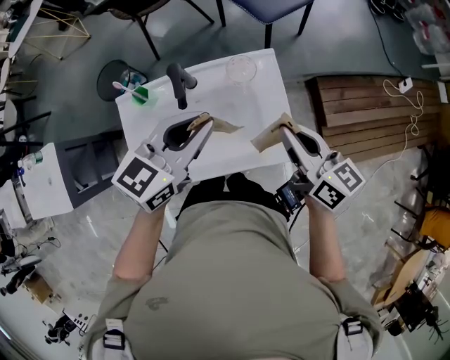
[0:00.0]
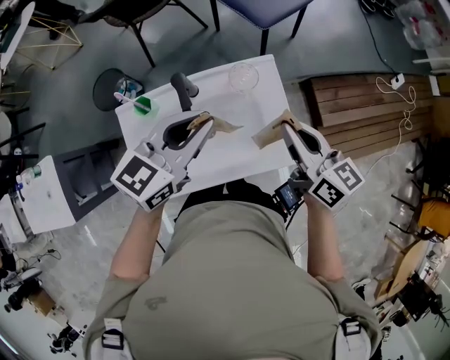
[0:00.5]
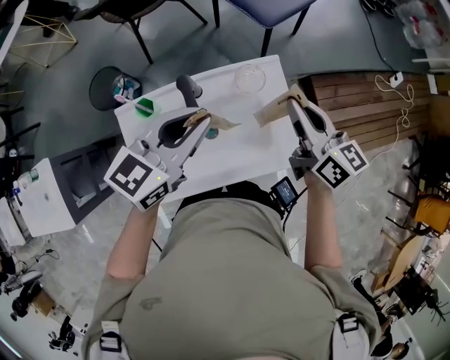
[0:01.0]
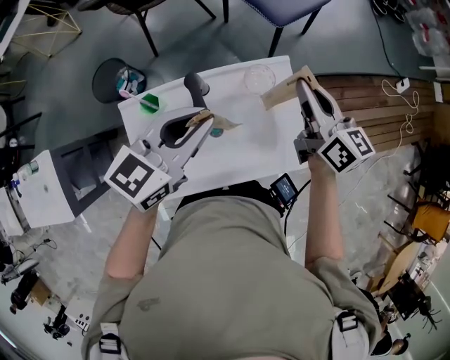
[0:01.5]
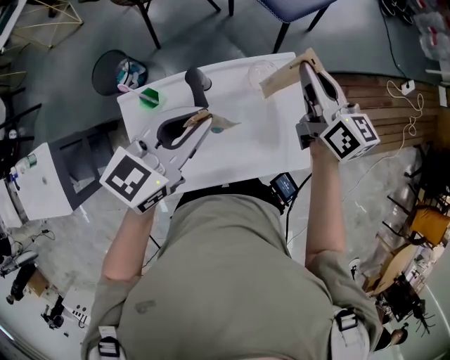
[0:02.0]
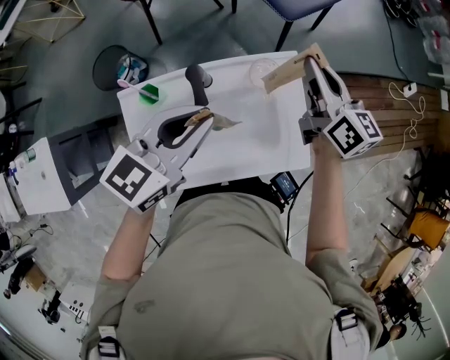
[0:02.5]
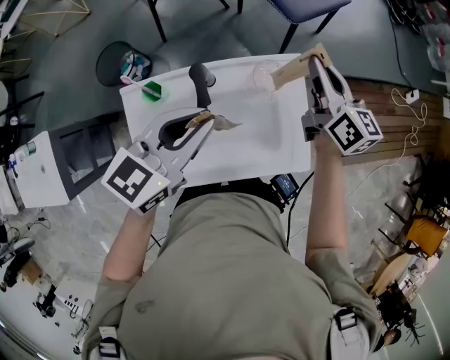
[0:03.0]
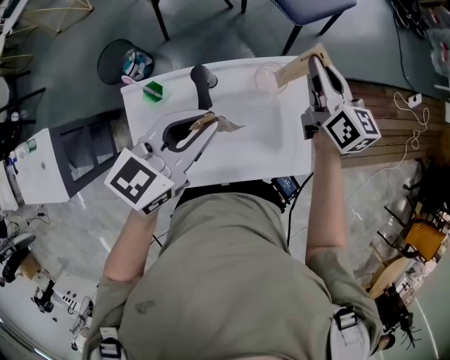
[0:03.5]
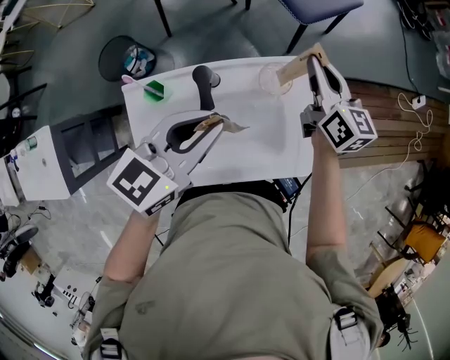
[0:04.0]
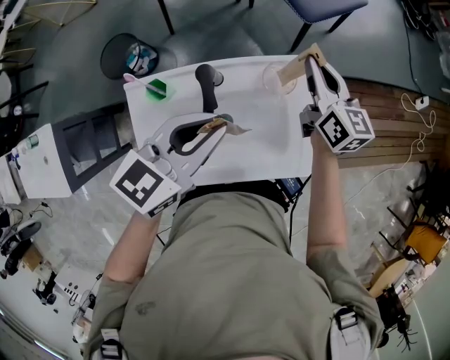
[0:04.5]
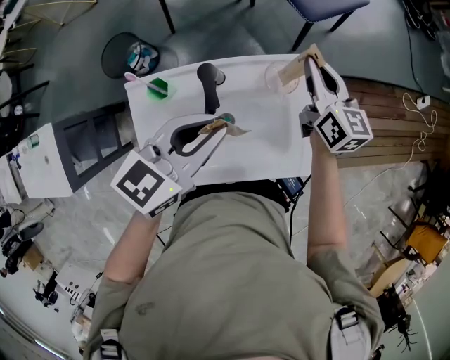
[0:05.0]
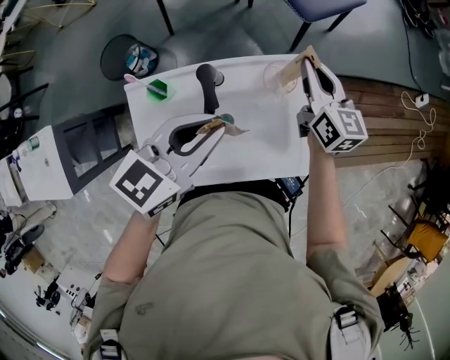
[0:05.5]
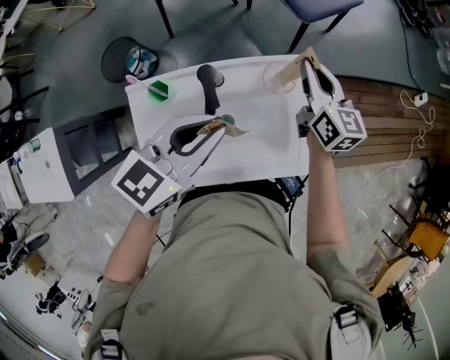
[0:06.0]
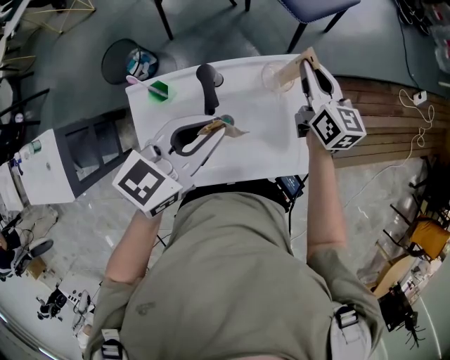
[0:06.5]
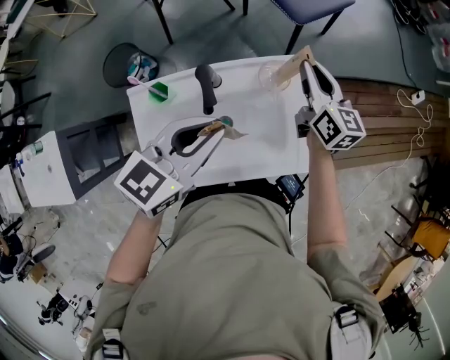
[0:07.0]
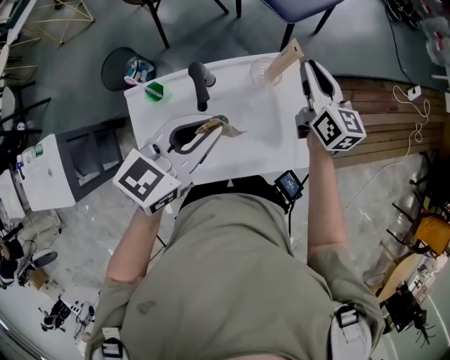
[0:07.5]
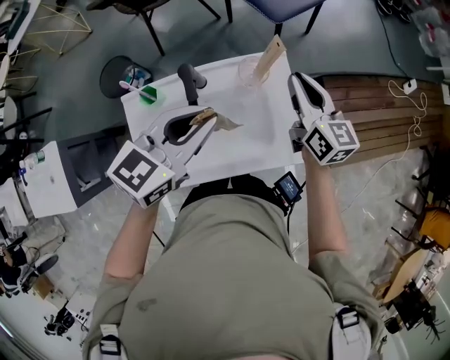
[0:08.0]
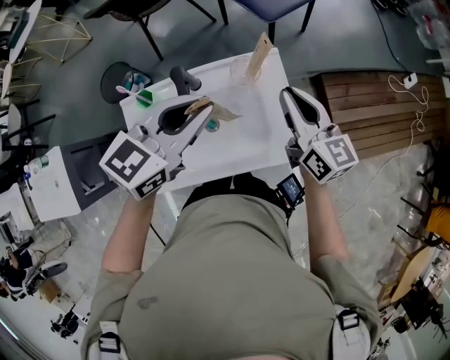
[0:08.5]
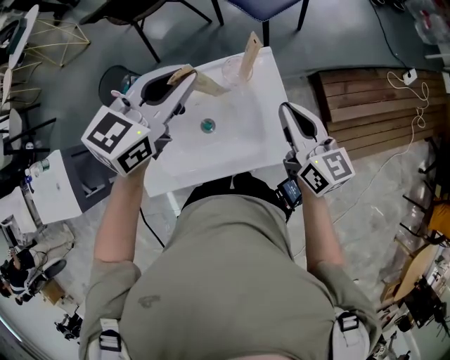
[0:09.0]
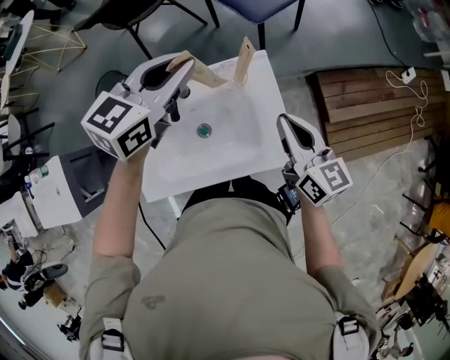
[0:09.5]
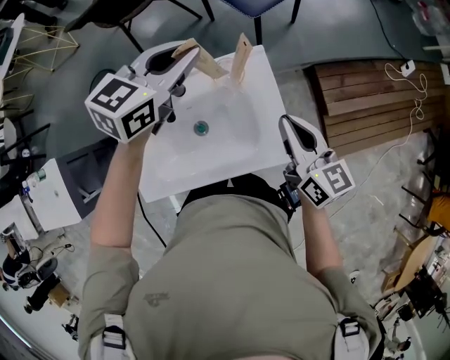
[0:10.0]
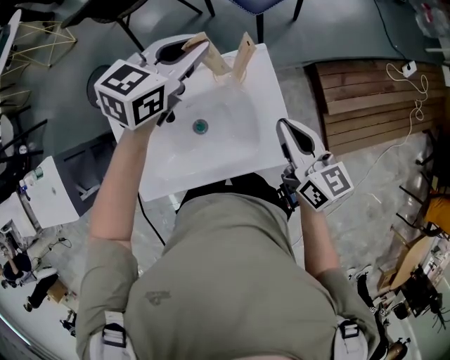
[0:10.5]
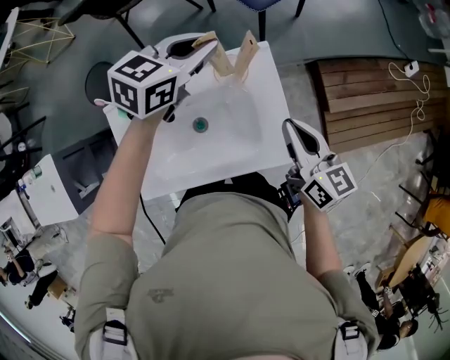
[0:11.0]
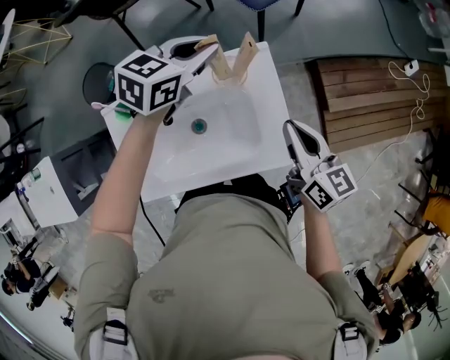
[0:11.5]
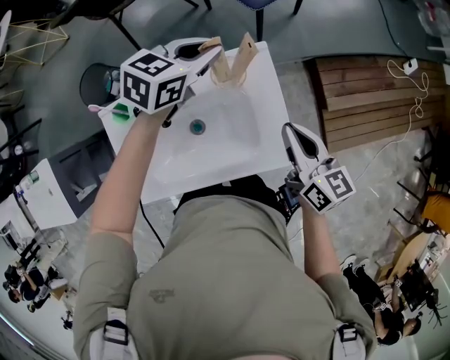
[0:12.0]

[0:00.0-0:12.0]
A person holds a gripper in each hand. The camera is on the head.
0:00.0 to 0:02.0: The right gripper travels forward by roughly 15 cm. Meanwhile the left gripper shifts by some 5 cm.
0:02.0 to 0:04.0: The right gripper changes place by approximately 5 cm.
0:04.0 to 0:06.0: The grippers stay close to where they were, moving slightly.
0:06.0 to 0:08.0: The left gripper moves about 5 cm; the right gripper travels backward and to the right by roughly 10 cm.
0:08.0 to 0:10.0: The right gripper moves backward and to the right, approximately 10 cm; the left gripper goes approximately 15 cm forward.
0:10.0 to 0:12.0: The left gripper moves downward, approximately 10 cm.

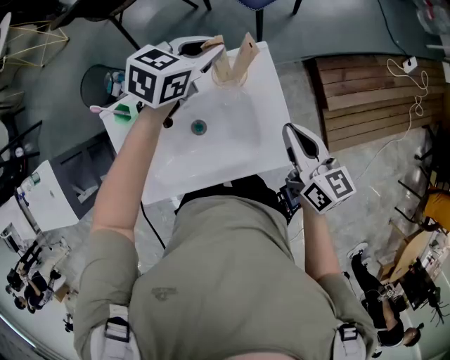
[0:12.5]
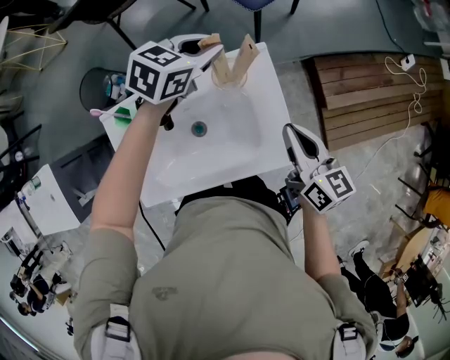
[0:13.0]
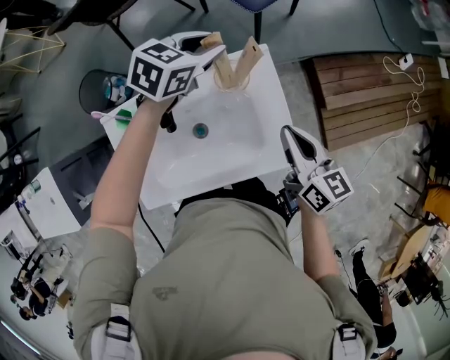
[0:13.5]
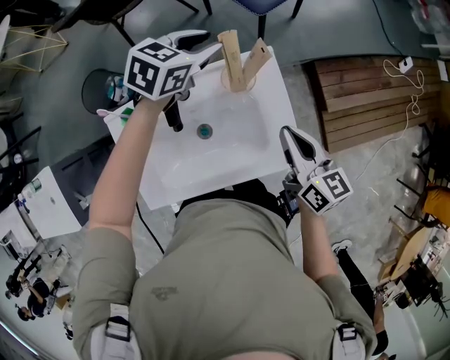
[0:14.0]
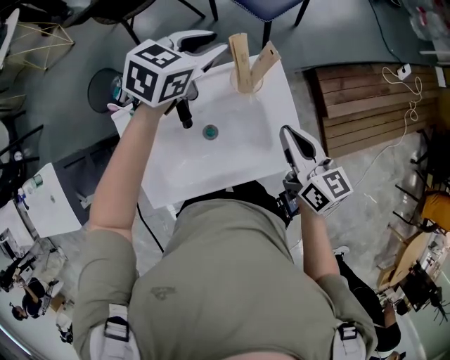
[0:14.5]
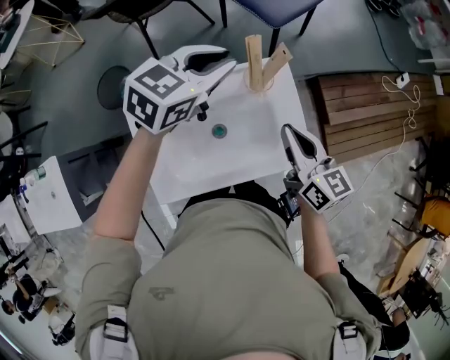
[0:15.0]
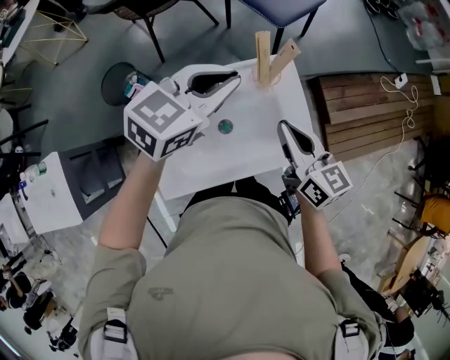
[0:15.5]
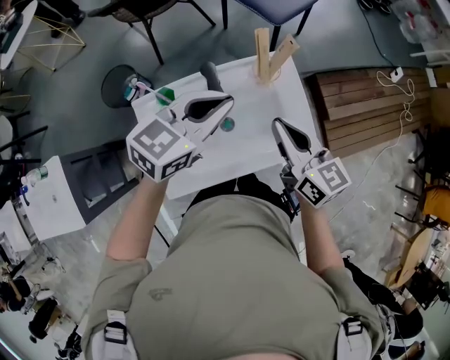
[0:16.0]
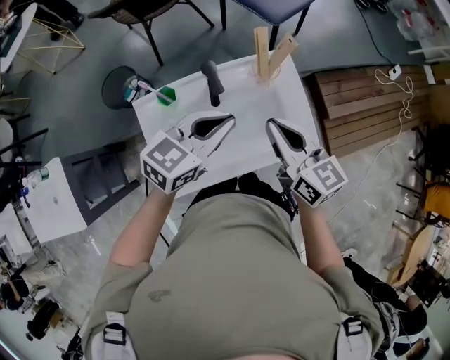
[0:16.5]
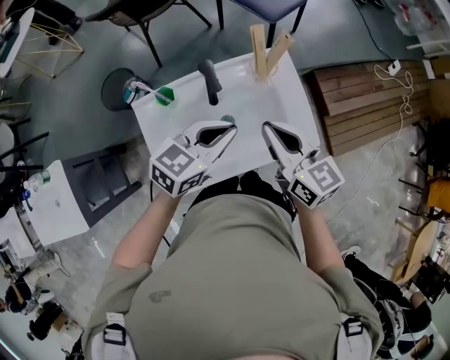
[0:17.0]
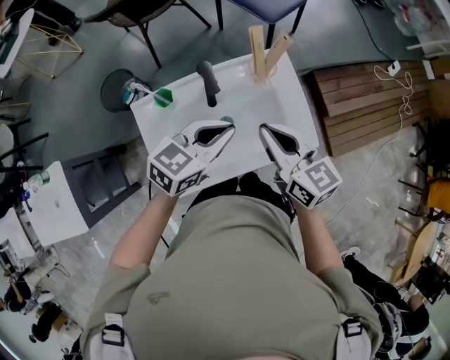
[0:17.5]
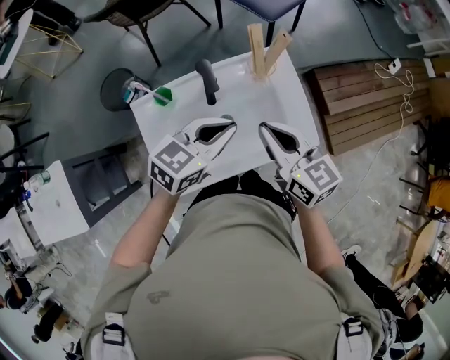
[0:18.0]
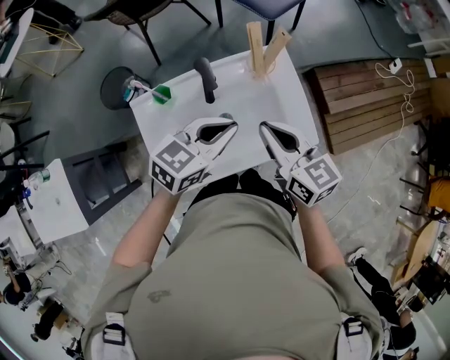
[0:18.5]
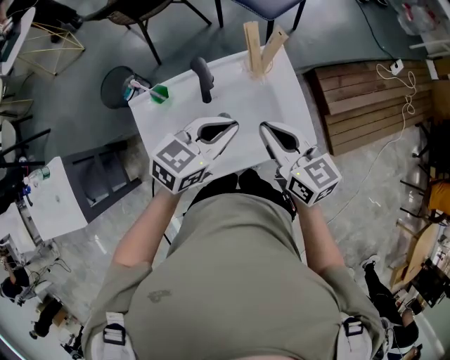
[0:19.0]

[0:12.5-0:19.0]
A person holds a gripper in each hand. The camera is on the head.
0:12.5 to 0:14.5: The right gripper moves to the left, roughly 5 cm, while the left gripper shifts by about 5 cm.
0:14.5 to 0:17.0: The left gripper goes roughly 25 cm backward, and closes its fingers, while the right gripper moves to the left, backward and upward, about 15 cm.
0:17.0 to 0:19.0: The grippers make only small movements.

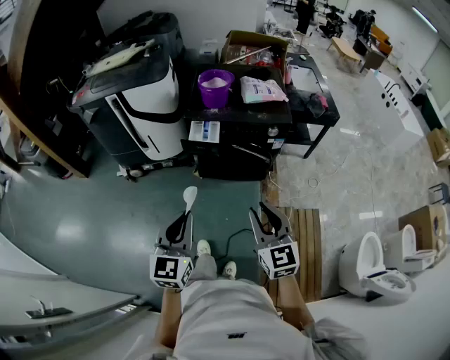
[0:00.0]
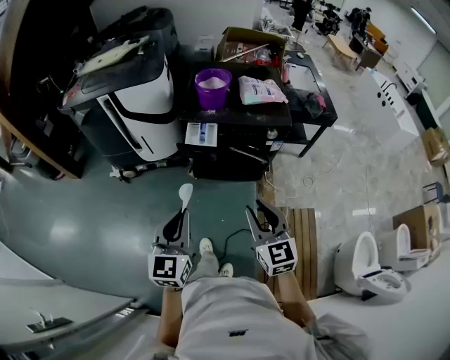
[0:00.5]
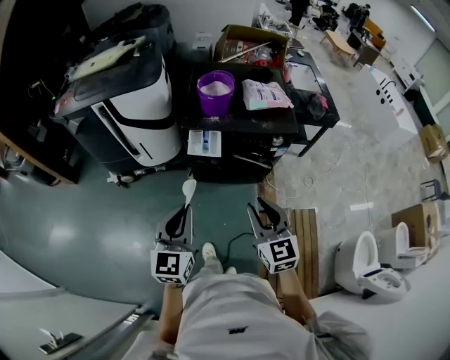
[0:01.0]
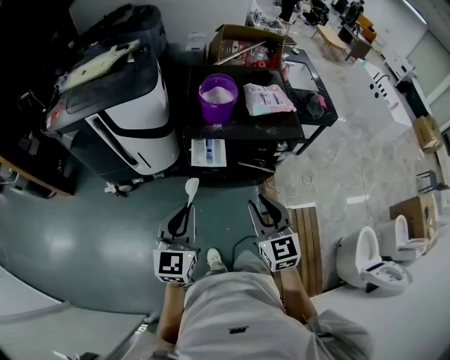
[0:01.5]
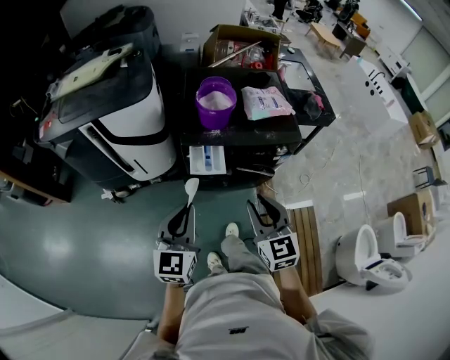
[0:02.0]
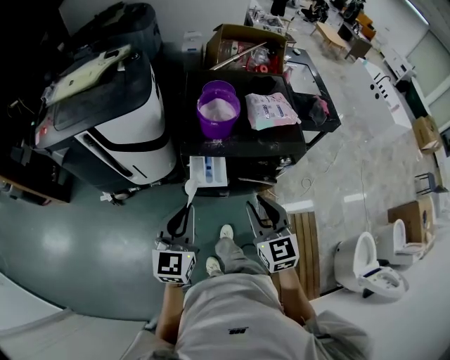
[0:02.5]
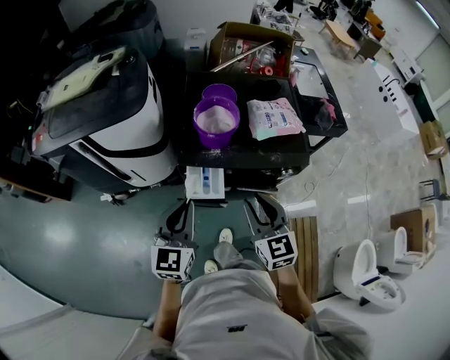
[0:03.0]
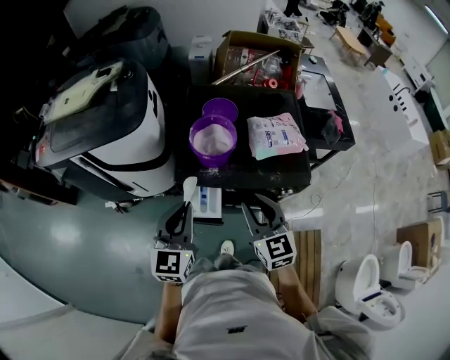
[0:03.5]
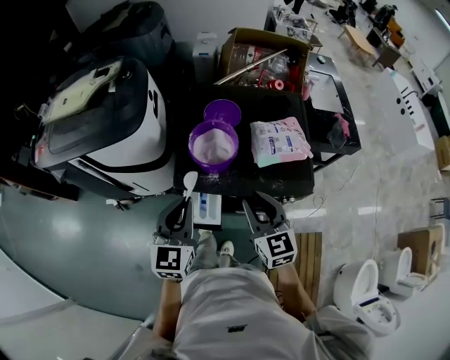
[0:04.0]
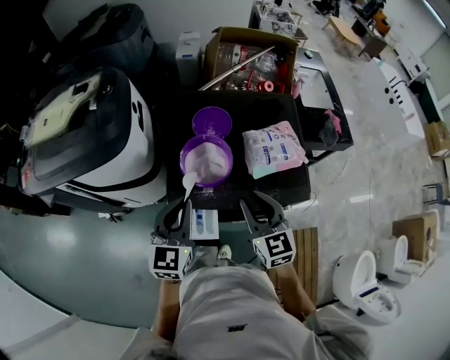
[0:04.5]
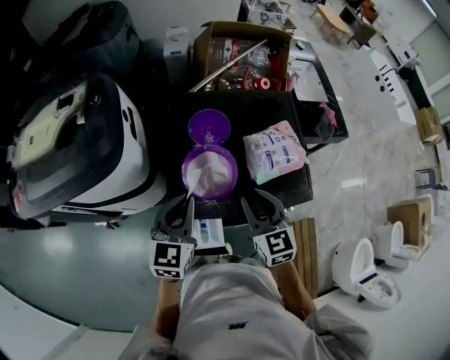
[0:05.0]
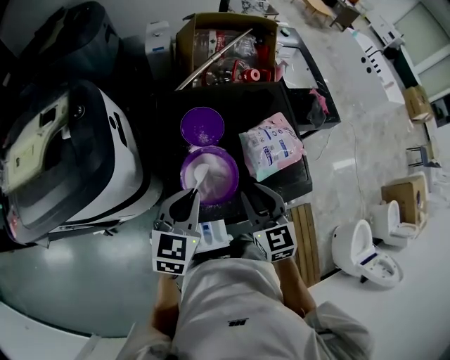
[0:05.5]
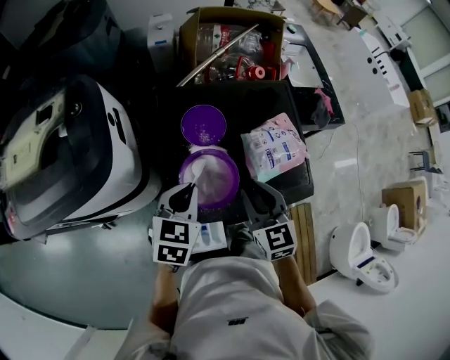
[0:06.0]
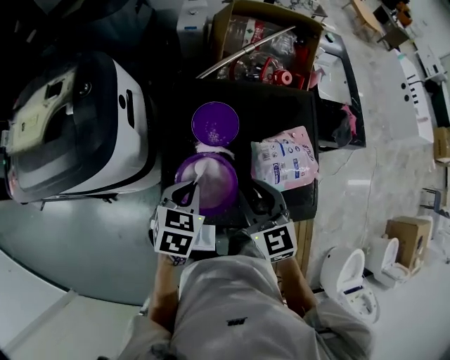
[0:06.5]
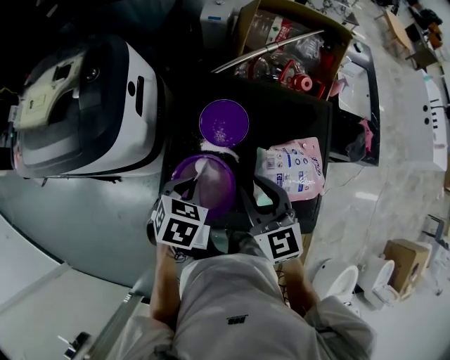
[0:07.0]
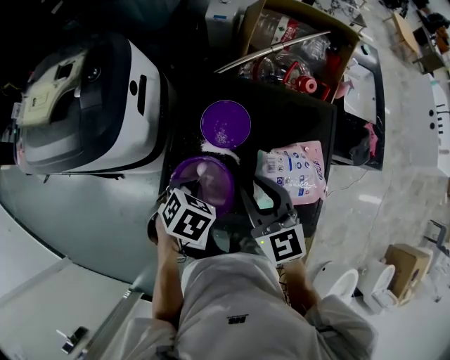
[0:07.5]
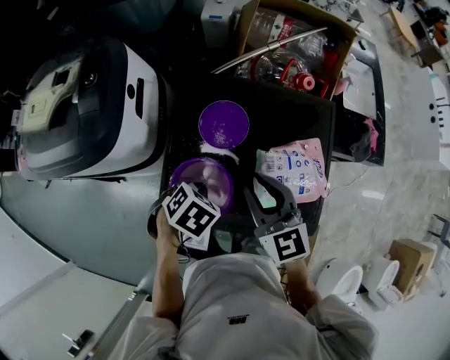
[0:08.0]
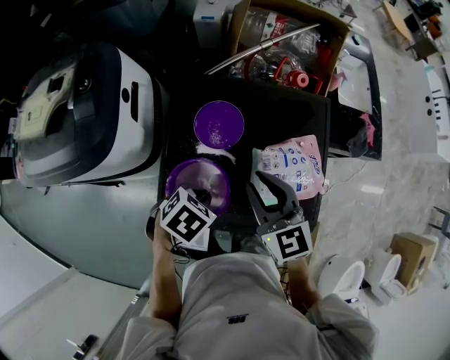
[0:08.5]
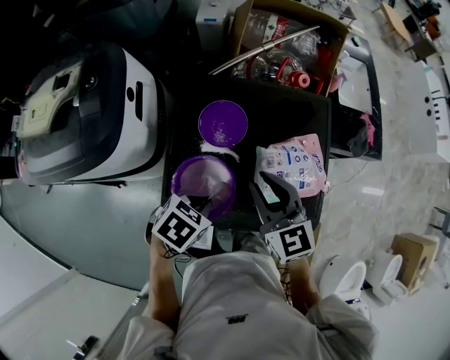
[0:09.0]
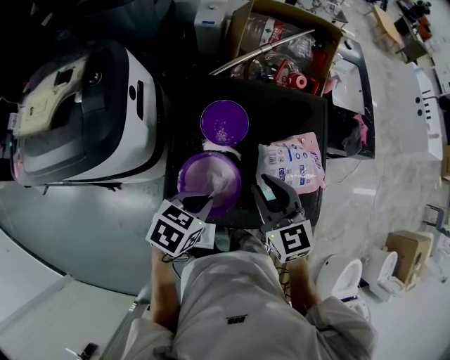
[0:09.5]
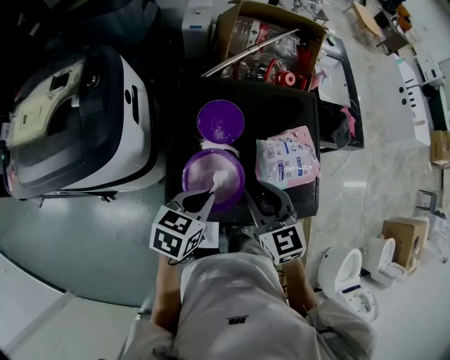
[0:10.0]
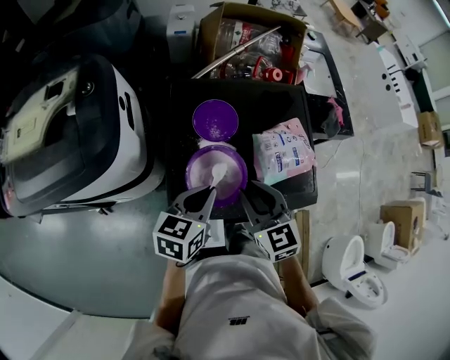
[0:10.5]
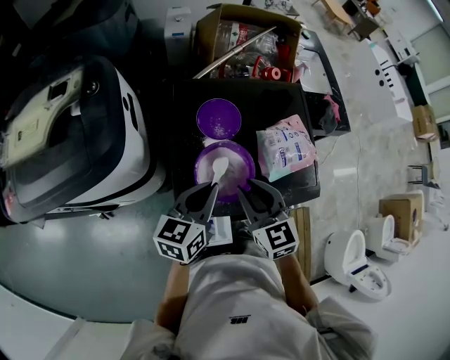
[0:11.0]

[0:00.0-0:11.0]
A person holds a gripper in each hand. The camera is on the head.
0:00.0 to 0:02.0: The right gripper heads forward and to the left, covering roughly 25 cm, while the left gripper moves forward, about 25 cm.
0:02.0 to 0:03.5: The two grippers go approximately 20 cm forward.
0:03.5 to 0:05.5: Both grippers travel together forward, about 20 cm. The left gripper changes its angle by about 30 degrees.
0:05.5 to 0:07.5: The right gripper is displaced forward by roughly 10 cm, and turns by some 30 degrees. Meanwhile the left gripper travels downward and forward by some 10 cm, and tips its fingers downward by about 50 degrees.
0:07.5 to 0:09.0: The left gripper shifts by roughly 5 cm, and rotates roughly 20 degrees.
0:09.0 to 0:11.0: The right gripper is displaced backward and to the left by roughly 15 cm. Meanwhile the left gripper is displaced to the left and upward by about 10 cm, and tips its fingers upward by approximately 40 degrees.
